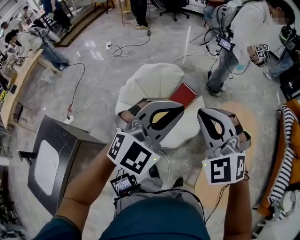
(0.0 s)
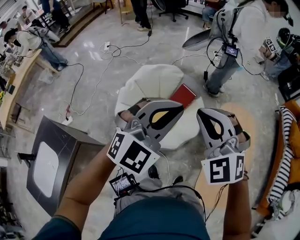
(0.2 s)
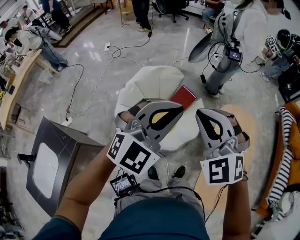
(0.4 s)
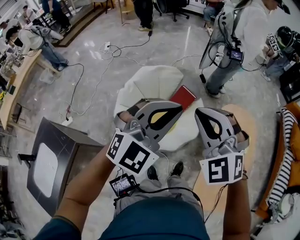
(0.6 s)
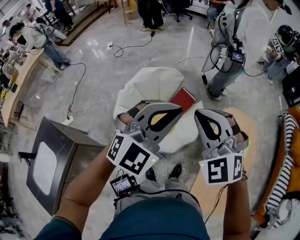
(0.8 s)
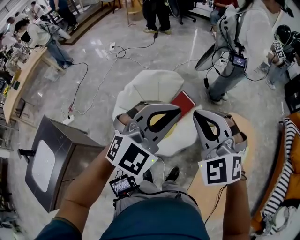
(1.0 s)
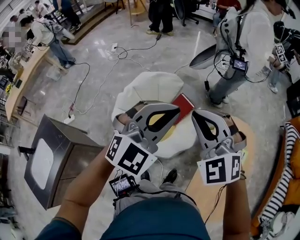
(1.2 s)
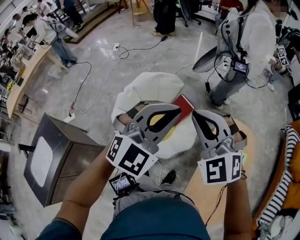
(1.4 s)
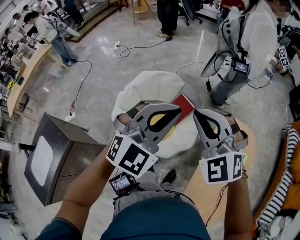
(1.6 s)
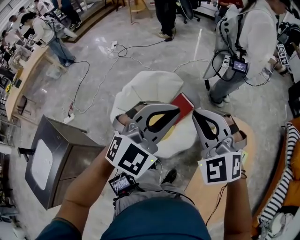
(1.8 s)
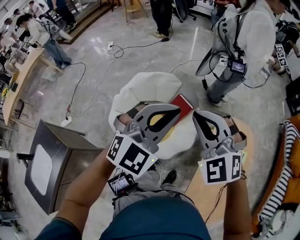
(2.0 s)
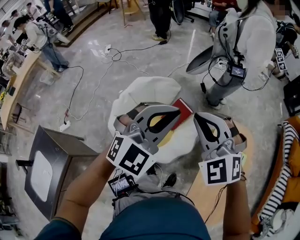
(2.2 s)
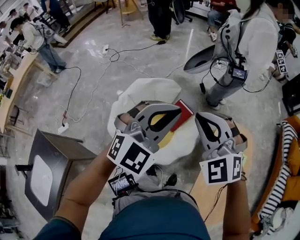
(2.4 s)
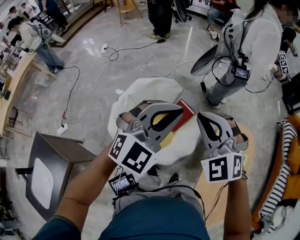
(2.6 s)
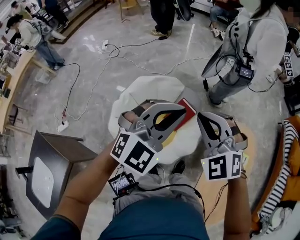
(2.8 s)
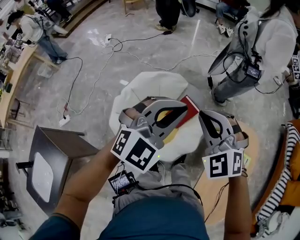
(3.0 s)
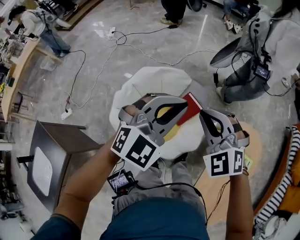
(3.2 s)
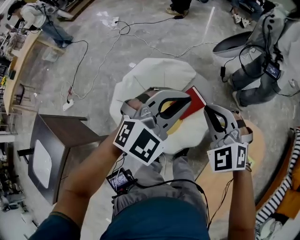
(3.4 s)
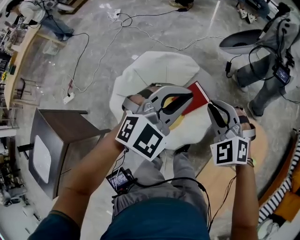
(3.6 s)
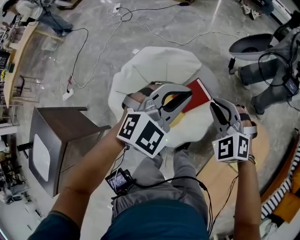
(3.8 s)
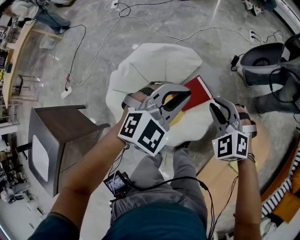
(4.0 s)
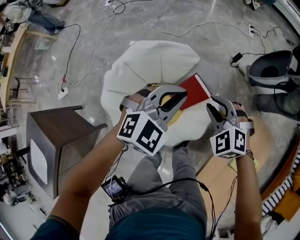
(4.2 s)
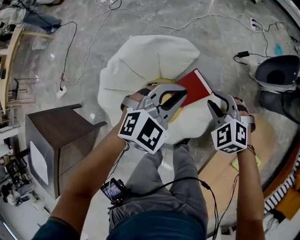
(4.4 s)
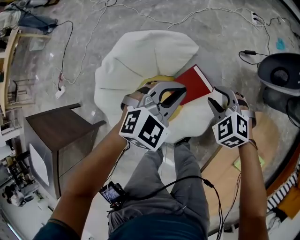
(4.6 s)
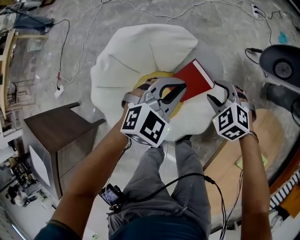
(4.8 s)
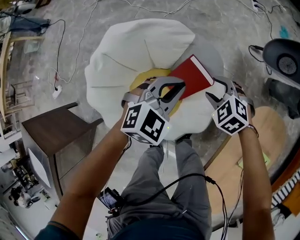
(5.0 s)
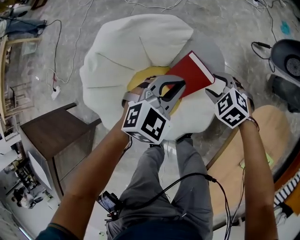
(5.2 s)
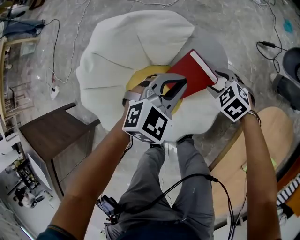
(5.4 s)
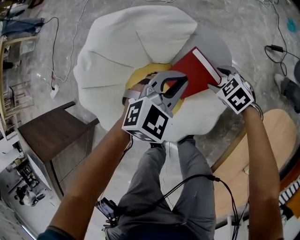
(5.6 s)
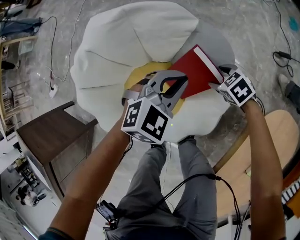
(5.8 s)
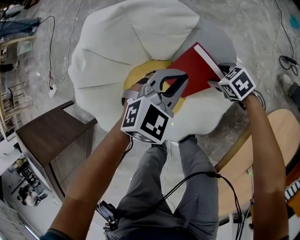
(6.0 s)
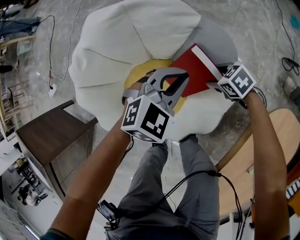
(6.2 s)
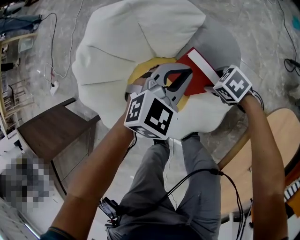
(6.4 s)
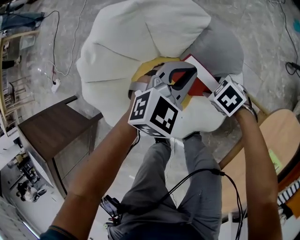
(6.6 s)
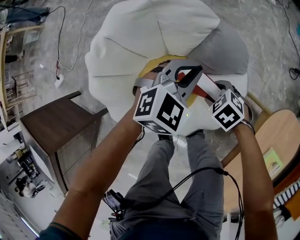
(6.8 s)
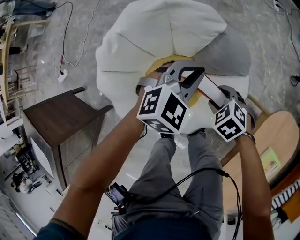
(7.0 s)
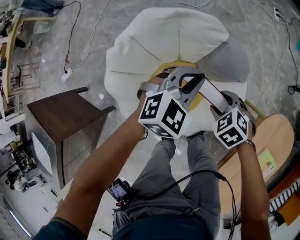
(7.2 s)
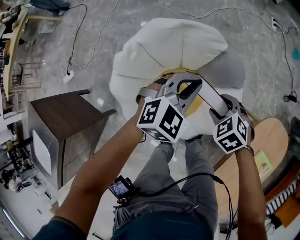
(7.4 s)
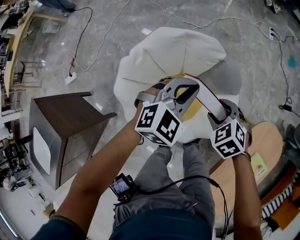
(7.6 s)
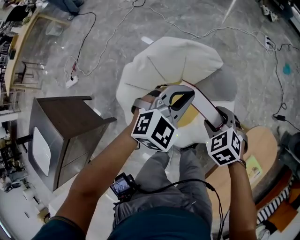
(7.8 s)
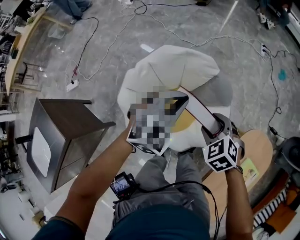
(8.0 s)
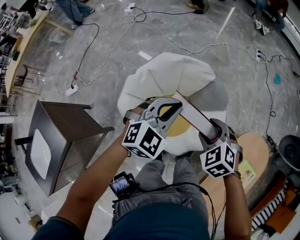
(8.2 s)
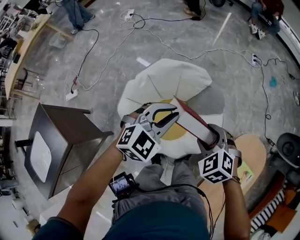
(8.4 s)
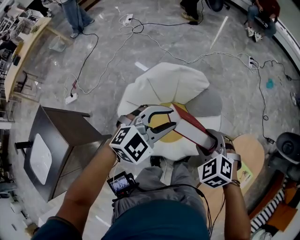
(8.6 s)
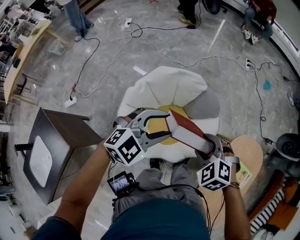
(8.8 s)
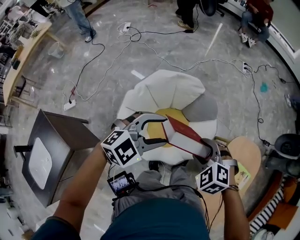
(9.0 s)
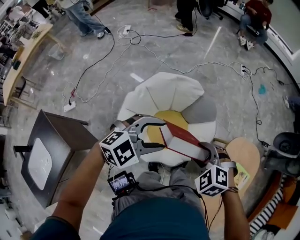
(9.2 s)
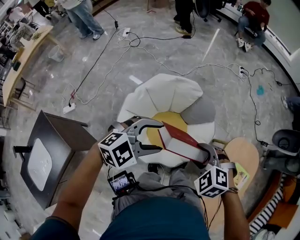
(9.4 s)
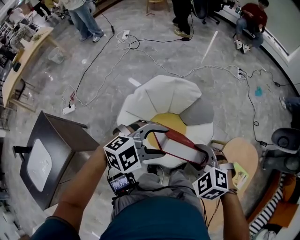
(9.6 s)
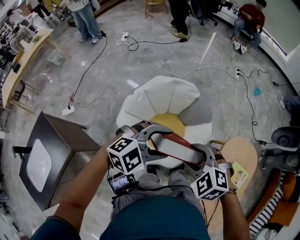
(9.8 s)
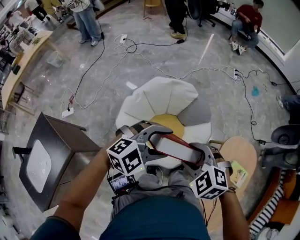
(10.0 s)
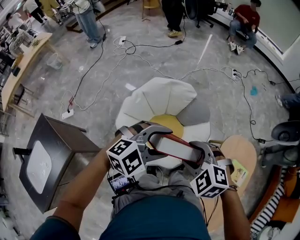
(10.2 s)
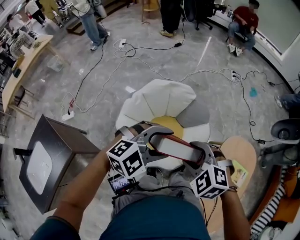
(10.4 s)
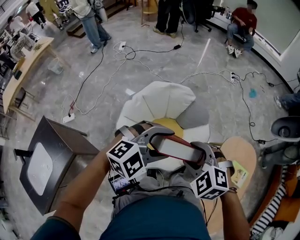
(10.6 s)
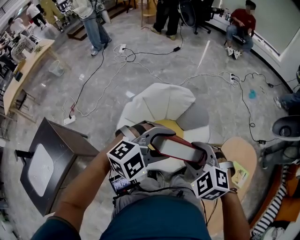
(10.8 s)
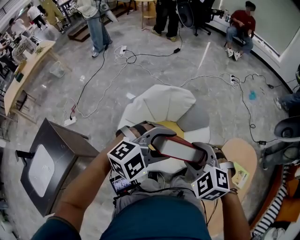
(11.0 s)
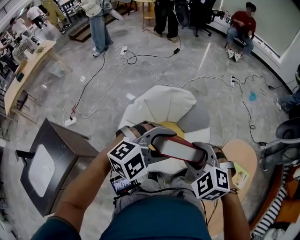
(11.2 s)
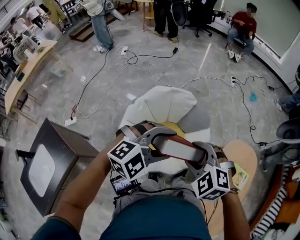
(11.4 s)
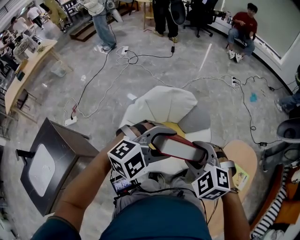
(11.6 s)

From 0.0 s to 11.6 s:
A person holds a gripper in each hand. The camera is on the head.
From 0.0 s to 1.4 s: The grippers both shift forward and to the right by approximately 15 cm.
From 1.4 s to 2.8 s: The right gripper is displaced forward, to the left and downward by roughly 15 cm, while the left gripper shifts about 15 cm forward and to the left.
From 2.8 s to 4.4 s: The grippers both shift downward and forward by some 35 cm. The left gripper rotates some 30 degrees. The right gripper turns by roughly 30 degrees, and opens up.
From 4.4 s to 5.8 s: Both grippers move downward, roughly 30 cm. The right gripper turns by some 40 degrees, and opens up.
From 5.8 s to 7.2 s: Both grippers move upward, approximately 15 cm.
From 7.2 s to 8.8 s: The right gripper travels upward by approximately 30 cm, and changes its angle by some 20 degrees; the left gripper goes roughly 35 cm upward, backward and to the left, and opens its fingers.
From 8.8 s to 10.2 s: The left gripper goes roughly 10 cm backward. Meanwhile the right gripper goes some 15 cm backward and upward.
From 10.2 s to 11.6 s: The grippers move only a little.

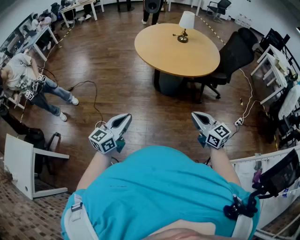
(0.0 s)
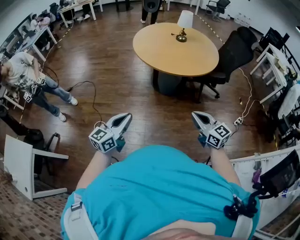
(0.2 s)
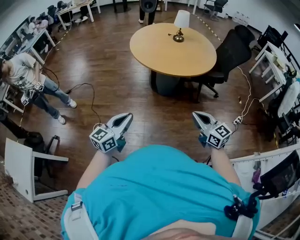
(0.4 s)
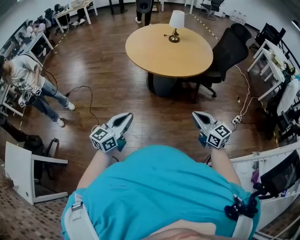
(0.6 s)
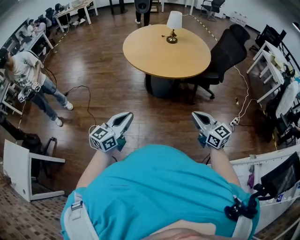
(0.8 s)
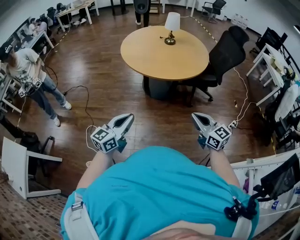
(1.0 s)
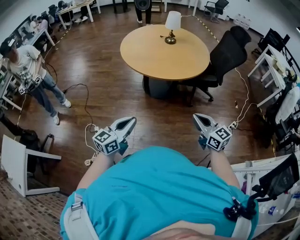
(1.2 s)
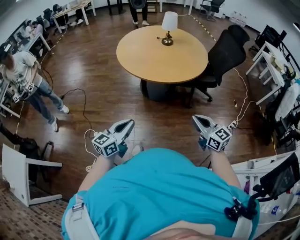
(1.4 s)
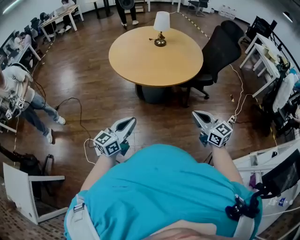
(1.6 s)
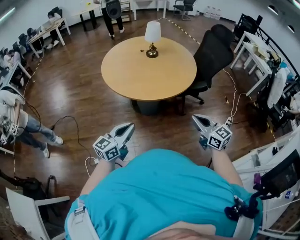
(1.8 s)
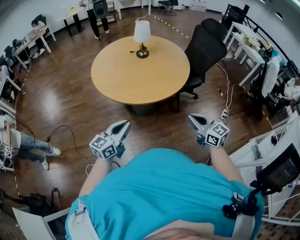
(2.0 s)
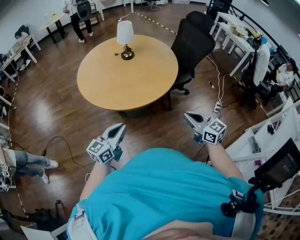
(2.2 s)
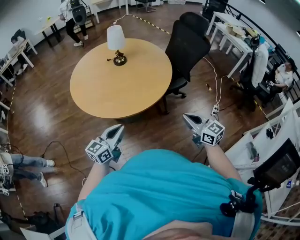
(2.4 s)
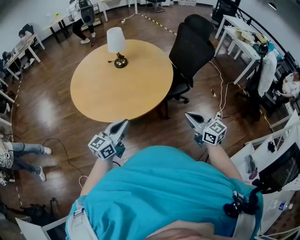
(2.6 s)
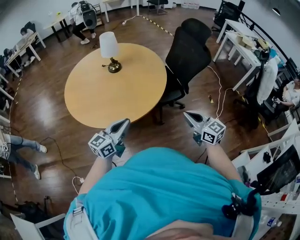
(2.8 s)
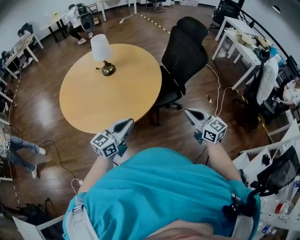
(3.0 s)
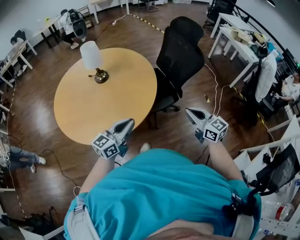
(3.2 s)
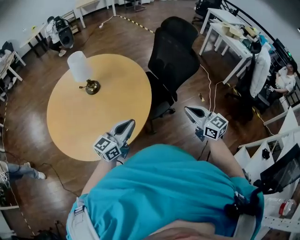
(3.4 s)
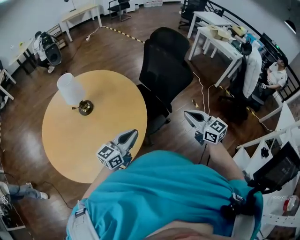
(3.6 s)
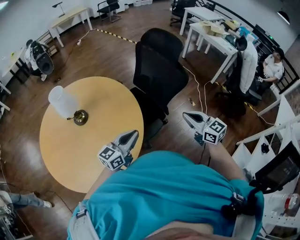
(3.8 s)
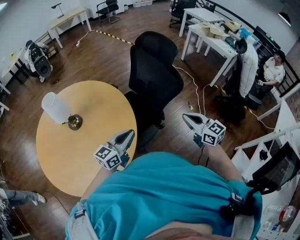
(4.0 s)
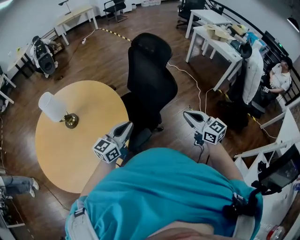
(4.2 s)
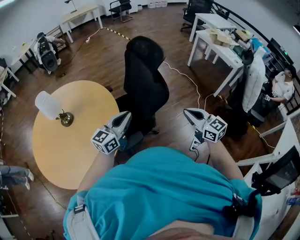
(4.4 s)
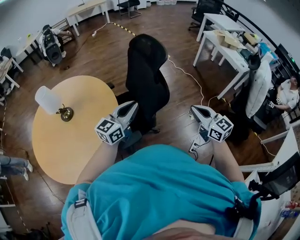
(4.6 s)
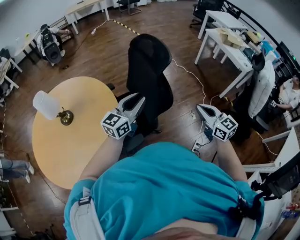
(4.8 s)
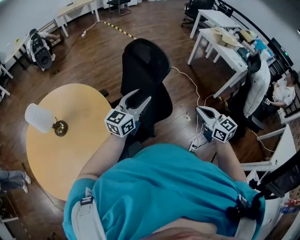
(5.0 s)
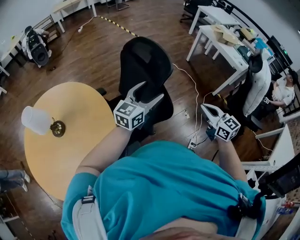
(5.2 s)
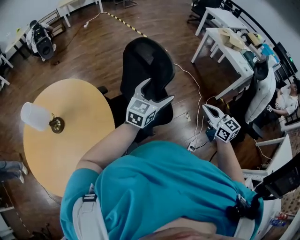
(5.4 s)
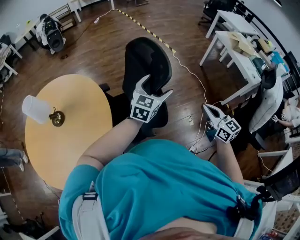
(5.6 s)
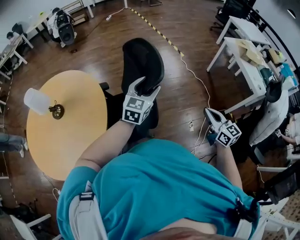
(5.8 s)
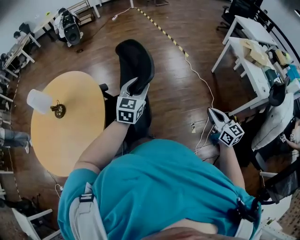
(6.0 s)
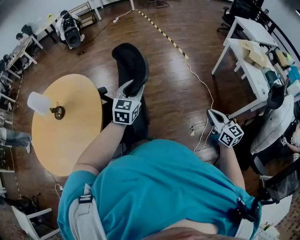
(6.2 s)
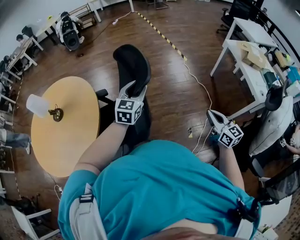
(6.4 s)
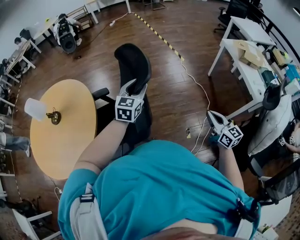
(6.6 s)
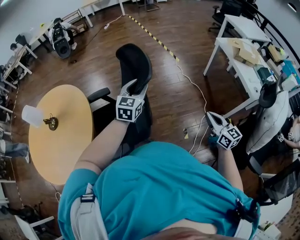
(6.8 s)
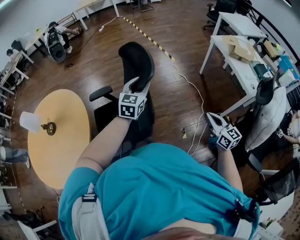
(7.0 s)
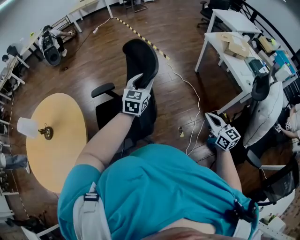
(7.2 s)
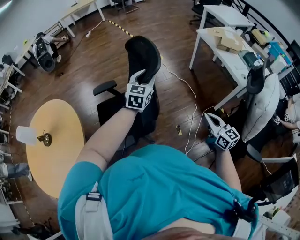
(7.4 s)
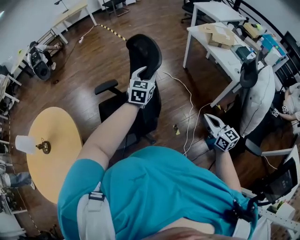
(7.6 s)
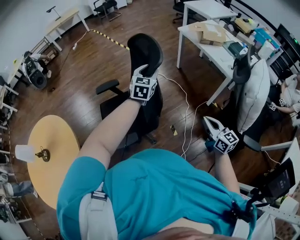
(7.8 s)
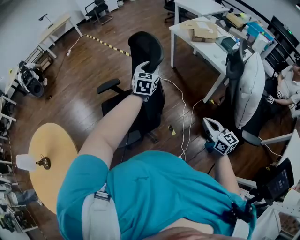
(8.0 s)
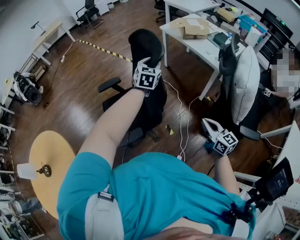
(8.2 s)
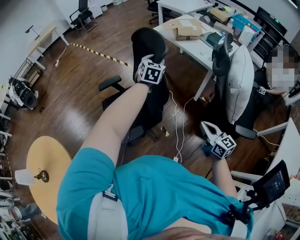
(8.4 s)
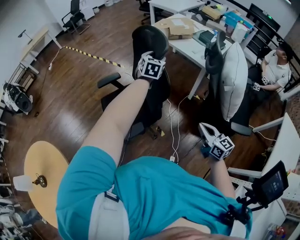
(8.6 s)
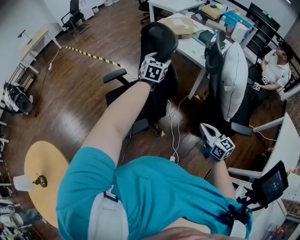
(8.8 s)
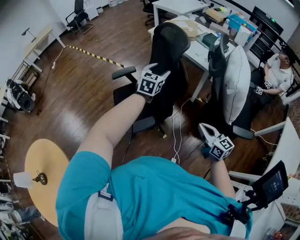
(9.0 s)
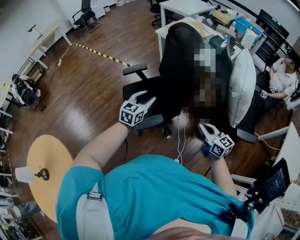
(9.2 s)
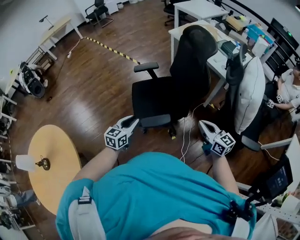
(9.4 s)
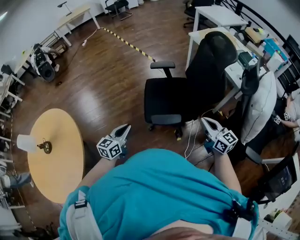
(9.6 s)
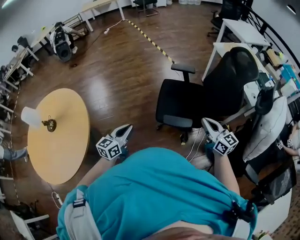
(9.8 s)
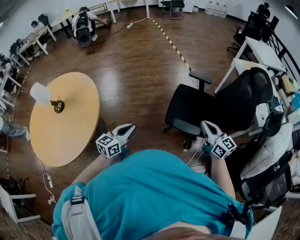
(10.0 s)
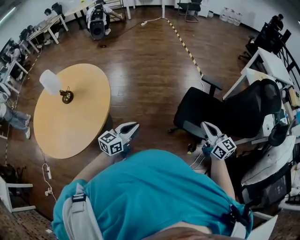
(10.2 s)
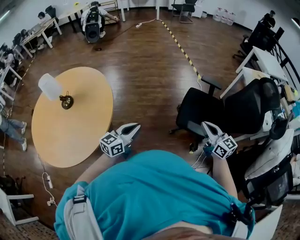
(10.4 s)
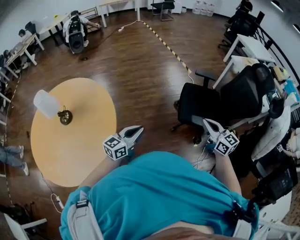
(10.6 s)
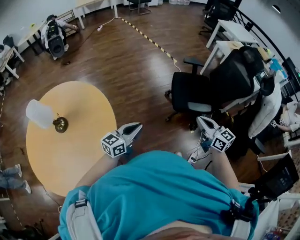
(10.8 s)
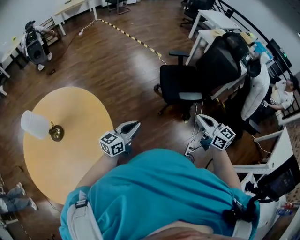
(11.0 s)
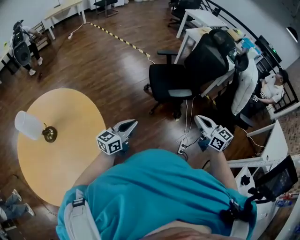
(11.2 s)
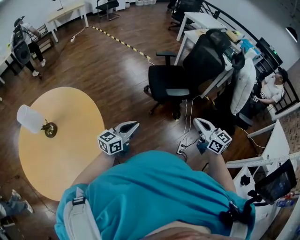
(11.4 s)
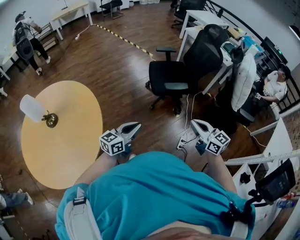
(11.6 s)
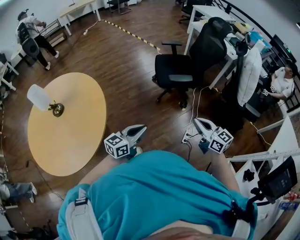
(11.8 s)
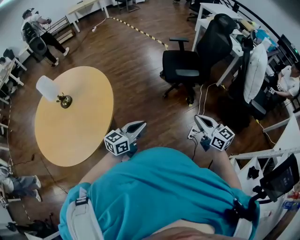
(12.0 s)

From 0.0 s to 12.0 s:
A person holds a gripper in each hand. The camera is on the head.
From 0.0 s to 1.6 s: The left gripper goes some 20 cm forward and to the right, while the right gripper moves to the right and forward, about 20 cm.
From 1.6 s to 3.0 s: The two grippers go approximately 35 cm forward and to the right.
From 3.0 s to 4.4 s: The two grippers go approximately 40 cm forward and to the right.
From 4.4 s to 6.0 s: The two grippers travel together, forward and to the right, approximately 40 cm. The left gripper changes its angle by approximately 40 degrees, and opens and closes again.
From 6.0 s to 7.6 s: The right gripper goes approximately 20 cm to the right. Meanwhile the left gripper is displaced to the right by about 30 cm.
From 7.6 s to 9.0 s: The right gripper is displaced to the right by approximately 10 cm; the left gripper moves to the right, roughly 25 cm, and turns by about 20 degrees.
From 9.0 s to 10.4 s: The left gripper reaches about 10 cm downward, then returns, swivels roughly 40 degrees, and closes. The right gripper ends up approximately 40 cm from where it was, and turns by roughly 40 degrees.
From 10.4 s to 12.0 s: The right gripper ends up approximately 40 cm from where it was, while the left gripper shifts by about 30 cm, and changes its angle by roughly 30 degrees.
